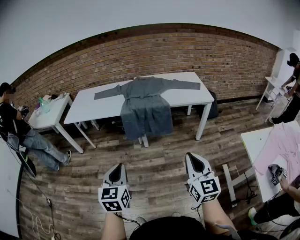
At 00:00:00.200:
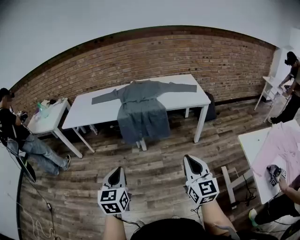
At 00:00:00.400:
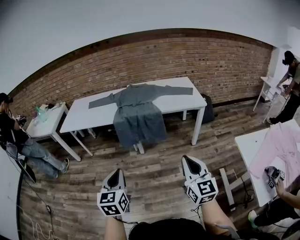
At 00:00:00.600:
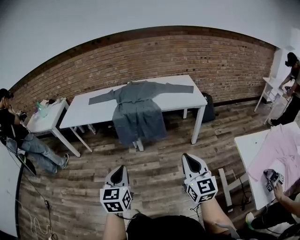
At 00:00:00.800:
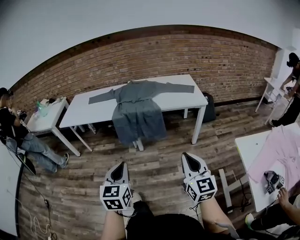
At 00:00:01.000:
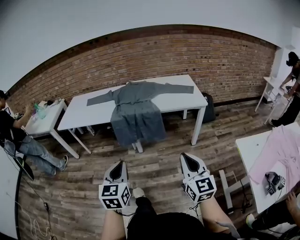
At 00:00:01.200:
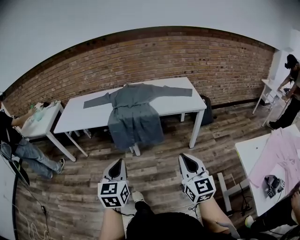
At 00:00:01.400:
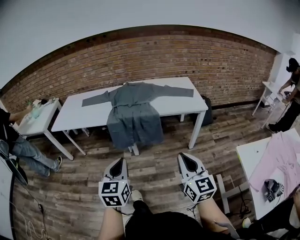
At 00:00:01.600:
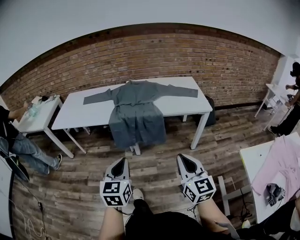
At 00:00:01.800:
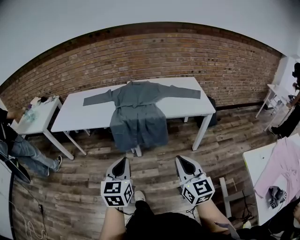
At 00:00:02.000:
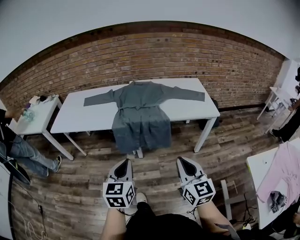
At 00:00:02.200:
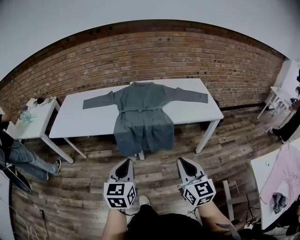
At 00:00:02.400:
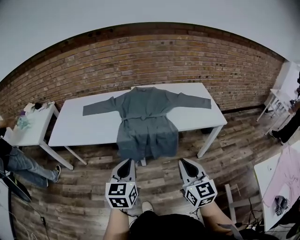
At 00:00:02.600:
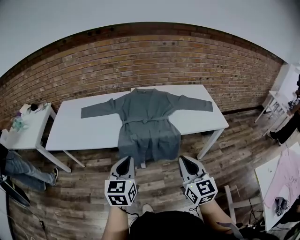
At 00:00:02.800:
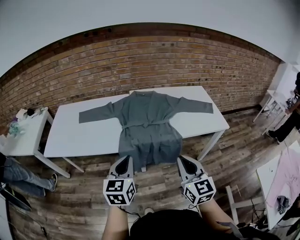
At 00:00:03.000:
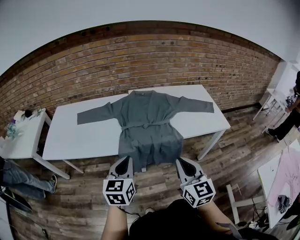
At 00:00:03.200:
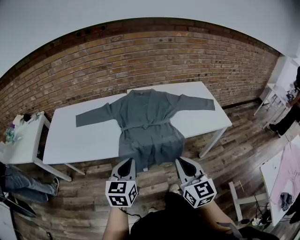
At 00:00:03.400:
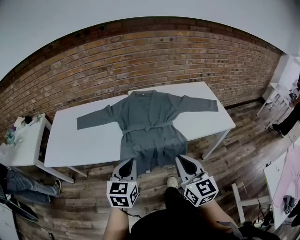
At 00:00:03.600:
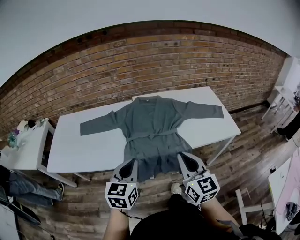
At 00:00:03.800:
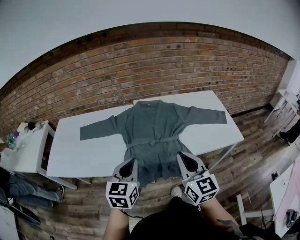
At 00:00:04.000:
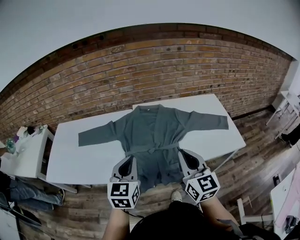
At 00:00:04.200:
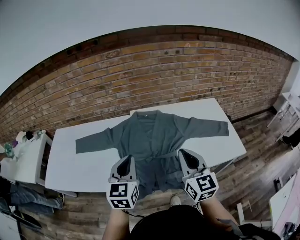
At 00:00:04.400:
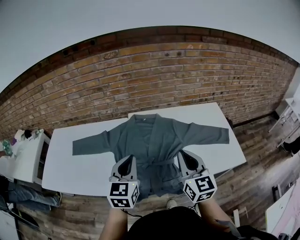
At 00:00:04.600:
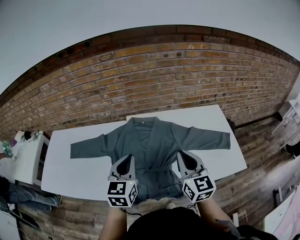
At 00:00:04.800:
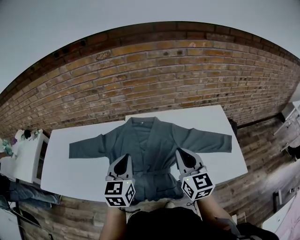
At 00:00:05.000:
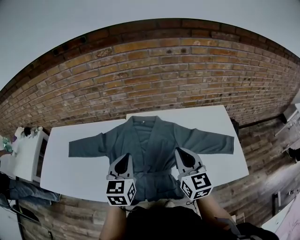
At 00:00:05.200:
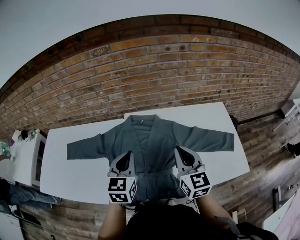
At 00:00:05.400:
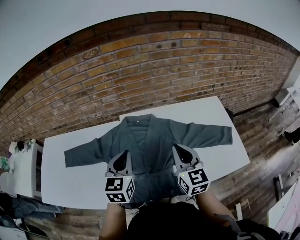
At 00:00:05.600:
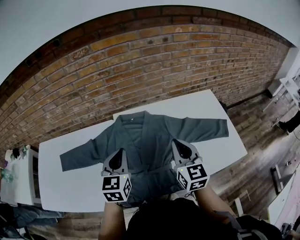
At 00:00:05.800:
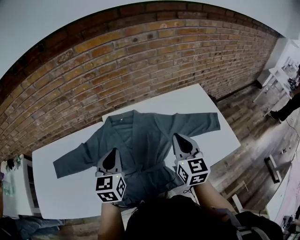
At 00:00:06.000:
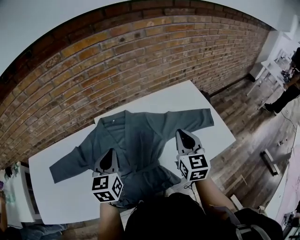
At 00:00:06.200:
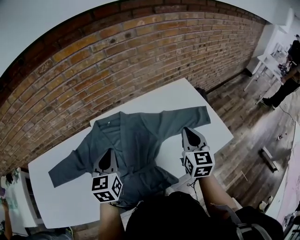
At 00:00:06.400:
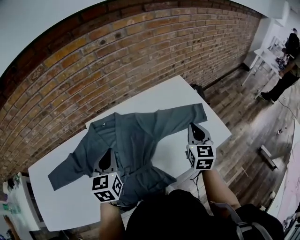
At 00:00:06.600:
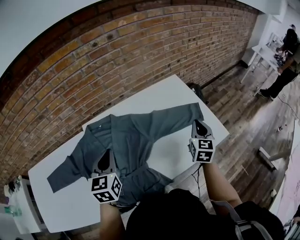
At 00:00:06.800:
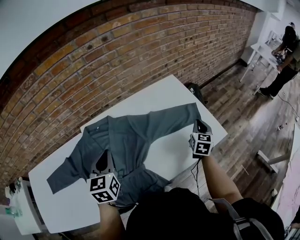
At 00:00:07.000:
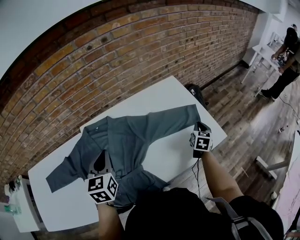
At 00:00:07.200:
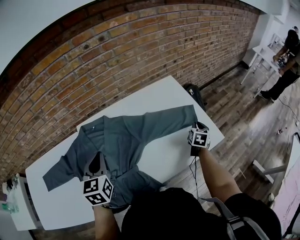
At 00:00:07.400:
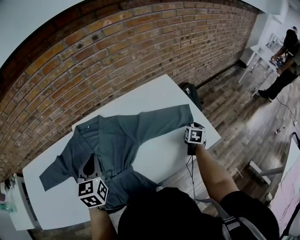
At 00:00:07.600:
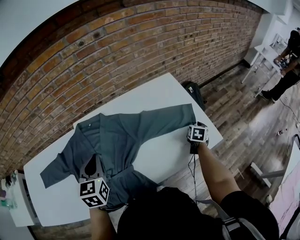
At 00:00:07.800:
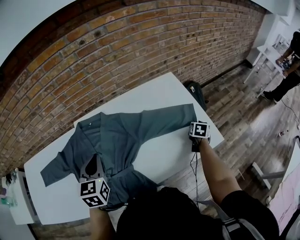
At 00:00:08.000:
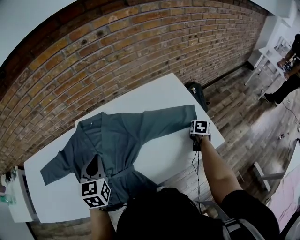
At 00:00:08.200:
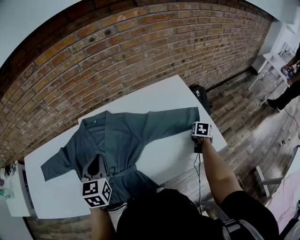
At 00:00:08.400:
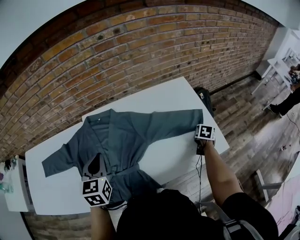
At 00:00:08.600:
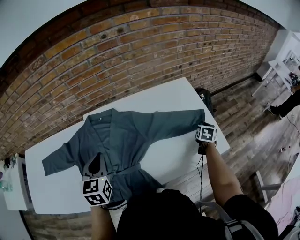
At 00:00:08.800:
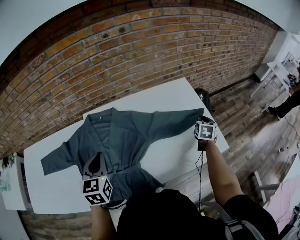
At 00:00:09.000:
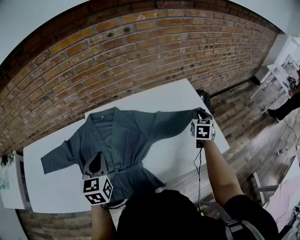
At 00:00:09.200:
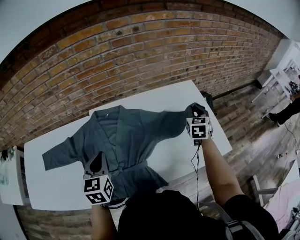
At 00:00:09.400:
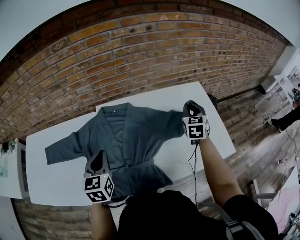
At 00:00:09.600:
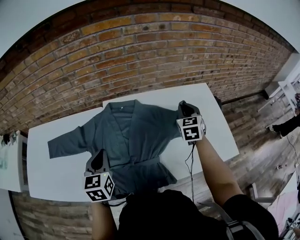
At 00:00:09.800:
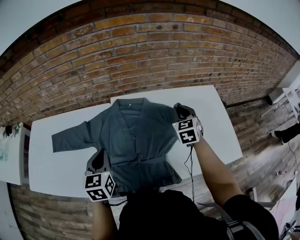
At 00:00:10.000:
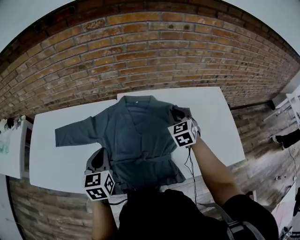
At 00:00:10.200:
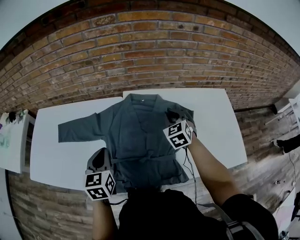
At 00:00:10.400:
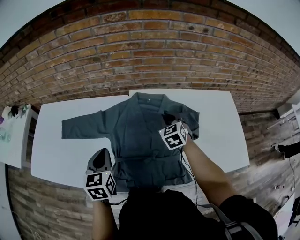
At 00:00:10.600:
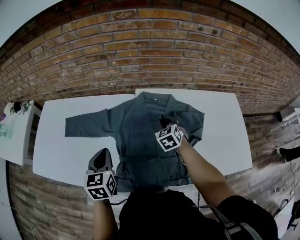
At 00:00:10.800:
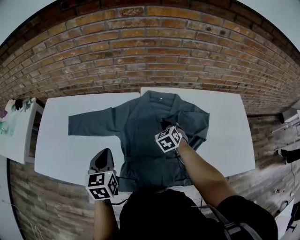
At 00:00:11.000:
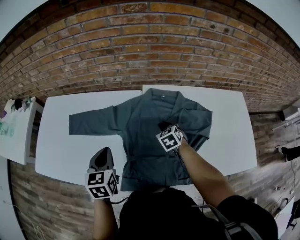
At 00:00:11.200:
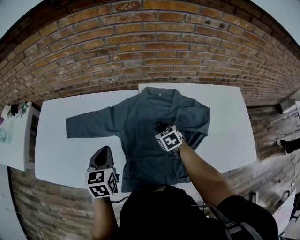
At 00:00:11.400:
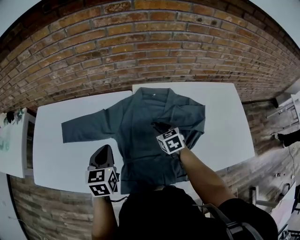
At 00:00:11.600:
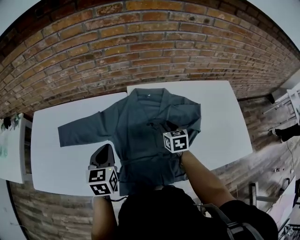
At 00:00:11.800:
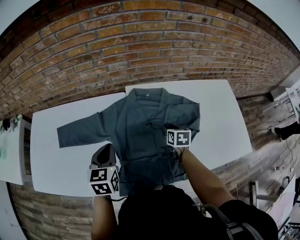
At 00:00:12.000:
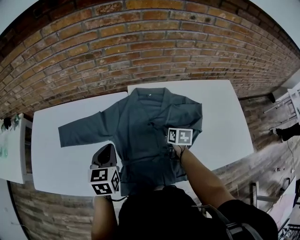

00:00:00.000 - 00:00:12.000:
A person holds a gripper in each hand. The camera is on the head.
00:00:00.000 - 00:00:01.600: The right gripper shifts roughly 10 cm forward. Meanwhile the left gripper is displaced forward and to the right by some 15 cm.
00:00:01.600 - 00:00:03.000: The grippers both shift forward and to the left by roughly 30 cm.
00:00:03.000 - 00:00:04.400: The two grippers go about 30 cm forward.
00:00:04.400 - 00:00:06.000: The left gripper travels forward by approximately 15 cm. Meanwhile the right gripper shifts approximately 15 cm forward, to the right and downward, and rotates about 20 degrees.
00:00:06.000 - 00:00:07.600: The left gripper moves to the right, approximately 10 cm. The right gripper travels to the right, downward and forward by approximately 40 cm, points its fingers some 30 degrees further downward, and opens its fingers.
00:00:07.600 - 00:00:09.000: The right gripper moves upward and to the left, approximately 15 cm, and turns by approximately 20 degrees, while the left gripper moves about 5 cm.
00:00:09.000 - 00:00:10.400: The left gripper moves roughly 20 cm, while the right gripper changes place by some 50 cm, and swivels some 50 degrees.
00:00:10.400 - 00:00:12.000: The left gripper travels forward by approximately 5 cm. The right gripper is displaced downward by about 10 cm, twists some 50 degrees clockwise, seen from behind, and opens up.

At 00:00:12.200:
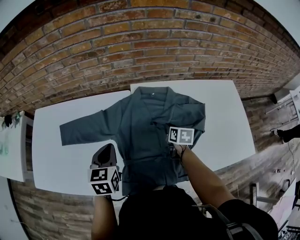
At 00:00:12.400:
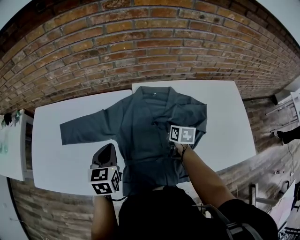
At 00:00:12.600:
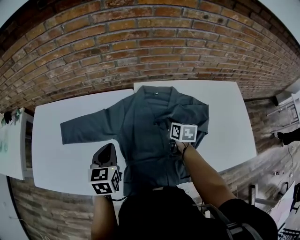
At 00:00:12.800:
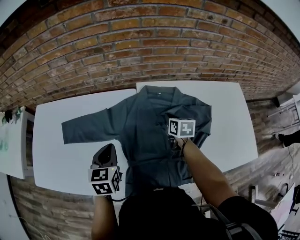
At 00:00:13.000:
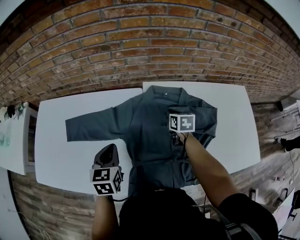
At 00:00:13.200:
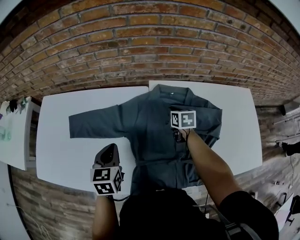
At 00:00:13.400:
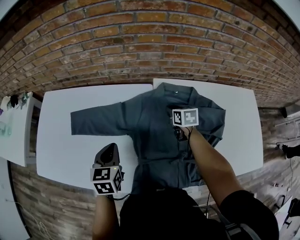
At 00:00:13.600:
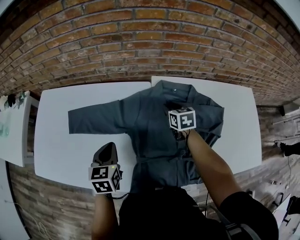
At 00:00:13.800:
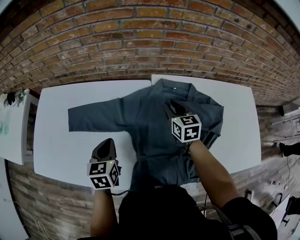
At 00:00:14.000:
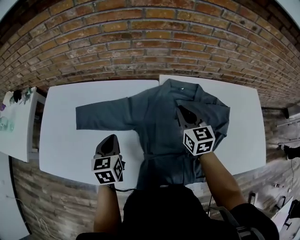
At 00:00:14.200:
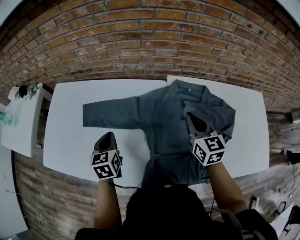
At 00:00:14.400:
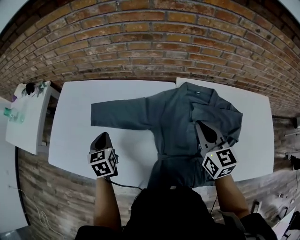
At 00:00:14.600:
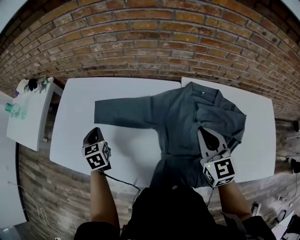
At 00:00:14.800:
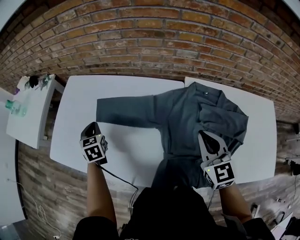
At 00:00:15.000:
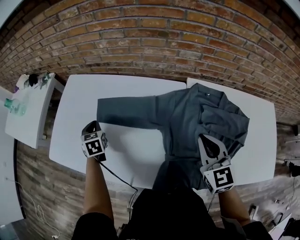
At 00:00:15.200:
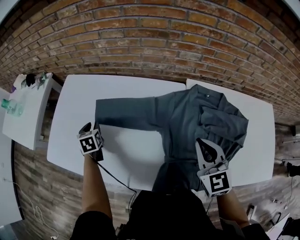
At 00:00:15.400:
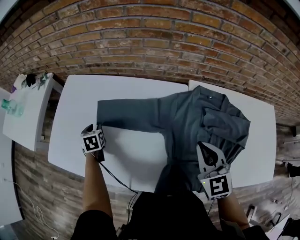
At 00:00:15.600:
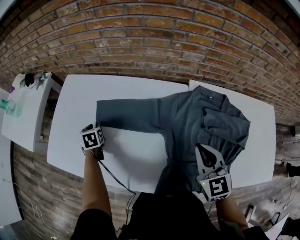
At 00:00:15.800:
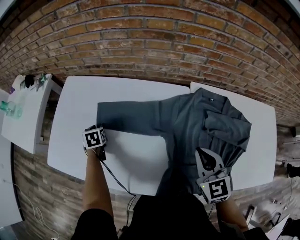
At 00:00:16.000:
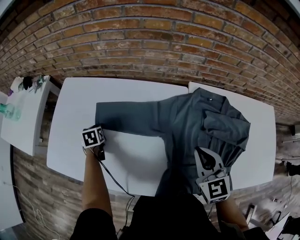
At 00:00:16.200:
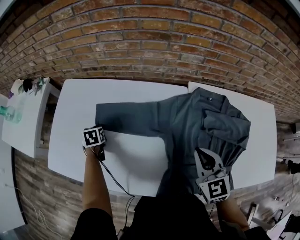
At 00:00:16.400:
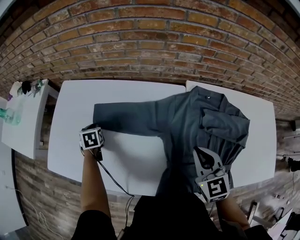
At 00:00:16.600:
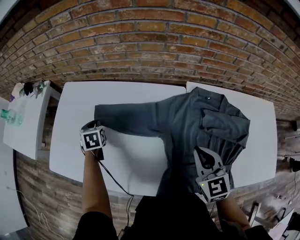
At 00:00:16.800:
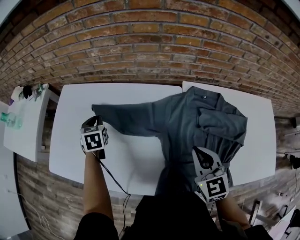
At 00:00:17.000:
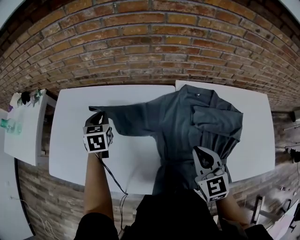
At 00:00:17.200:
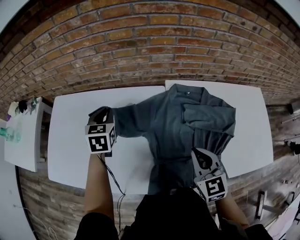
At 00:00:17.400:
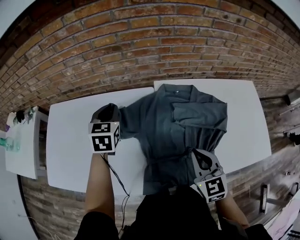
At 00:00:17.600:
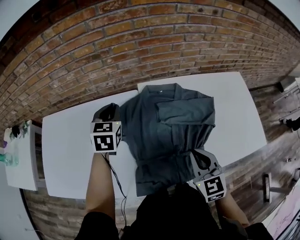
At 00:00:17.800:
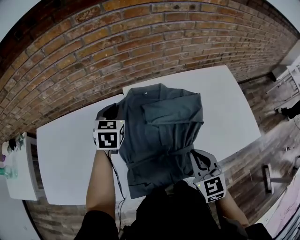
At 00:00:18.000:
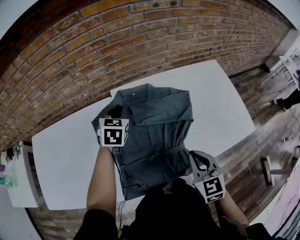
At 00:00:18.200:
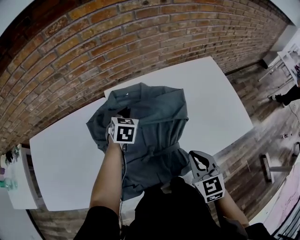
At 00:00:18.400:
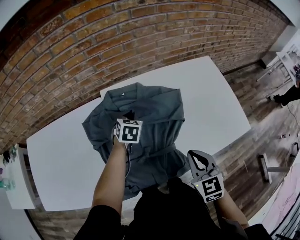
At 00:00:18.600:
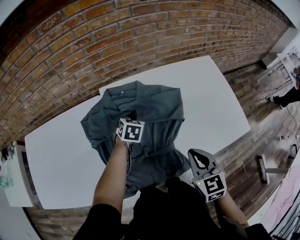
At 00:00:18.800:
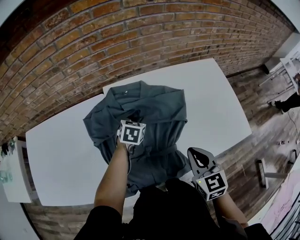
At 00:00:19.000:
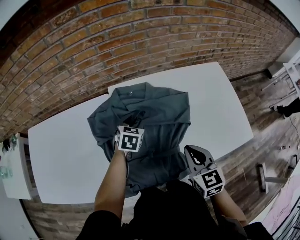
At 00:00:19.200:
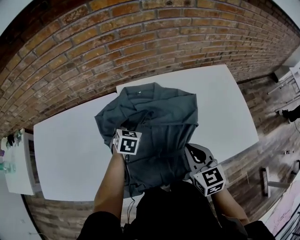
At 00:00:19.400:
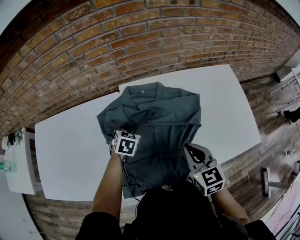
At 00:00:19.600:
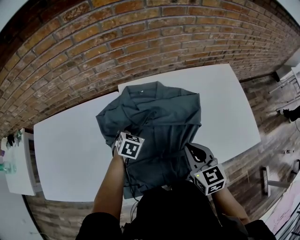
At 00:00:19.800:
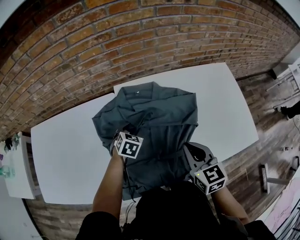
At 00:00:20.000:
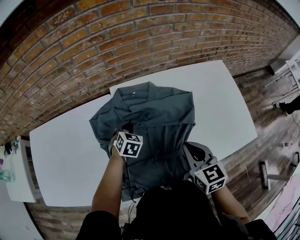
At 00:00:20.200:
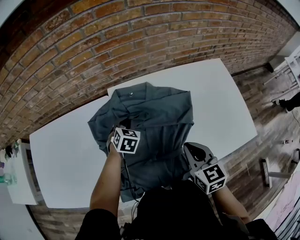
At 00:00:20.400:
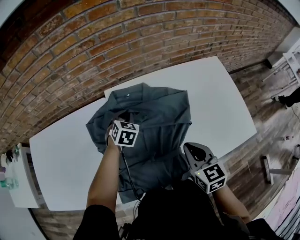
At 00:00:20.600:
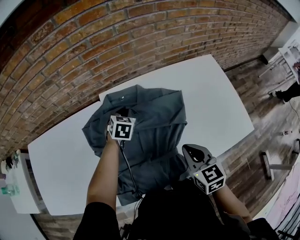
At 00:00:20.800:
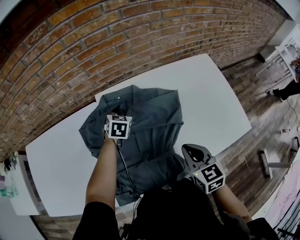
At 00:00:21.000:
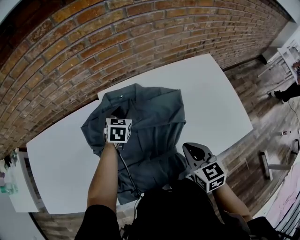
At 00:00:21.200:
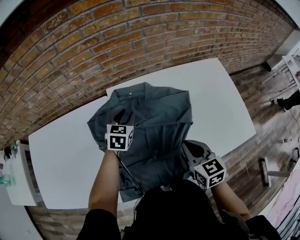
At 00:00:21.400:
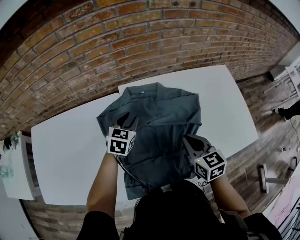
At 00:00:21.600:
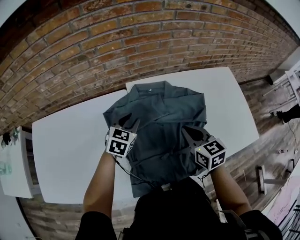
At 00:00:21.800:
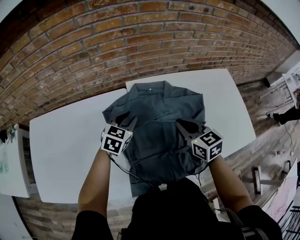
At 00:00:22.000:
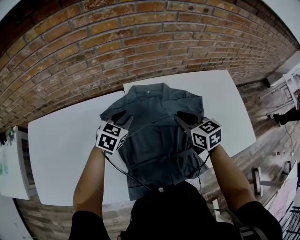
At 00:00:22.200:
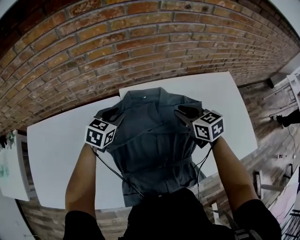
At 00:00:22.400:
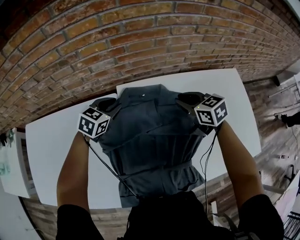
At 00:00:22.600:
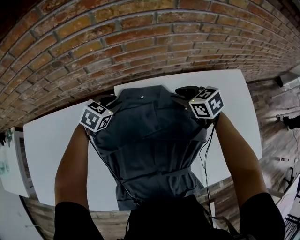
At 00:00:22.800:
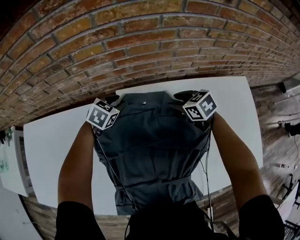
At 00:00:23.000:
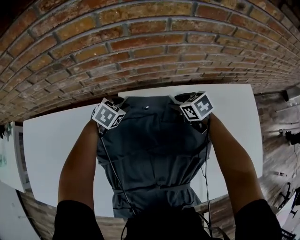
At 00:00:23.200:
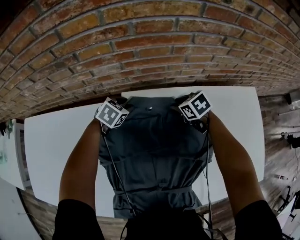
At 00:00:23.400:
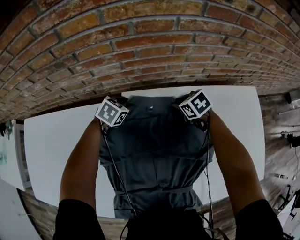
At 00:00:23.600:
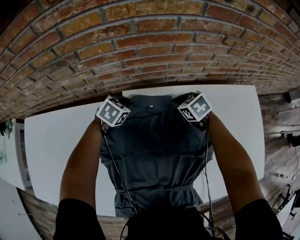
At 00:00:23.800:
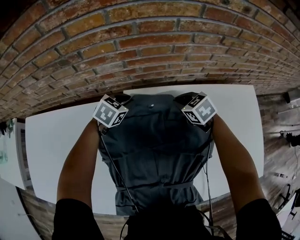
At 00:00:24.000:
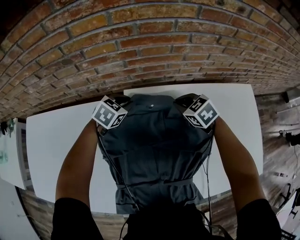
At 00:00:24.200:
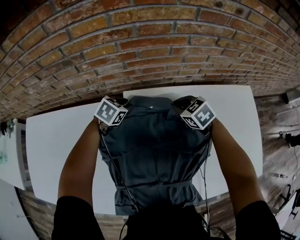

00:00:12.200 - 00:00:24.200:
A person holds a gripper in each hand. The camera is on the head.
00:00:12.200 - 00:00:13.800: The right gripper goes about 15 cm to the left, upward and forward, and swivels about 30 degrees; the left gripper is displaced to the left by approximately 10 cm.
00:00:13.800 - 00:00:15.200: The right gripper moves backward, to the left and upward, some 20 cm, changes its angle by approximately 20 degrees, and closes. Meanwhile the left gripper travels to the left and forward by about 25 cm, changes its angle by approximately 20 degrees, and opens its fingers.
00:00:15.200 - 00:00:16.600: The left gripper shifts by about 5 cm.
00:00:16.600 - 00:00:18.200: The left gripper moves approximately 60 cm, and rotates roughly 50 degrees; the right gripper ends up some 30 cm from where it was, and turns by roughly 30 degrees.
00:00:18.200 - 00:00:19.800: The left gripper goes about 10 cm downward and backward, travels to the left and back again, about 5 cm each way, and opens its fingers. The right gripper heads forward, covering some 5 cm.
00:00:19.800 - 00:00:21.200: The left gripper moves upward and forward, about 10 cm, and closes, then reopens.
00:00:21.200 - 00:00:22.600: The left gripper moves forward and to the left, some 15 cm. The right gripper heads forward, covering approximately 30 cm, turns by approximately 30 degrees, and opens.
00:00:22.600 - 00:00:24.200: The right gripper closes.
